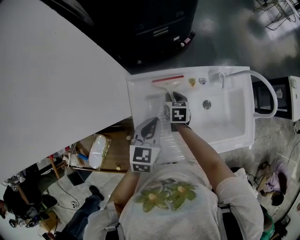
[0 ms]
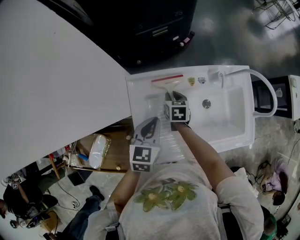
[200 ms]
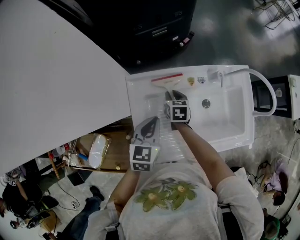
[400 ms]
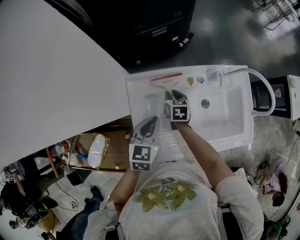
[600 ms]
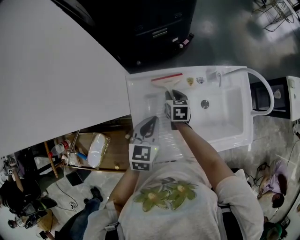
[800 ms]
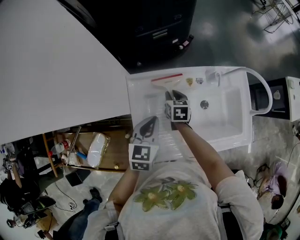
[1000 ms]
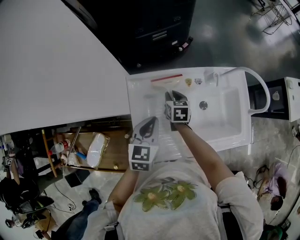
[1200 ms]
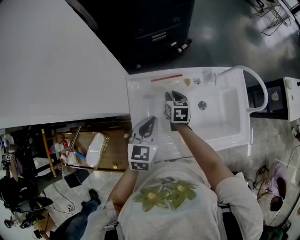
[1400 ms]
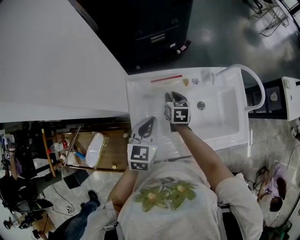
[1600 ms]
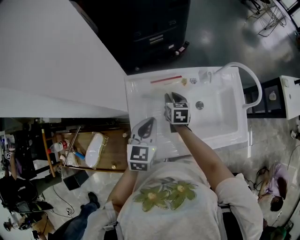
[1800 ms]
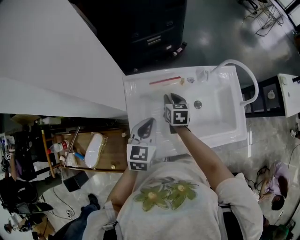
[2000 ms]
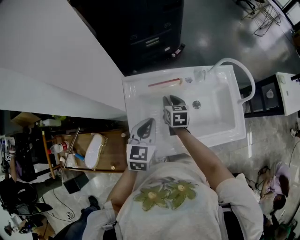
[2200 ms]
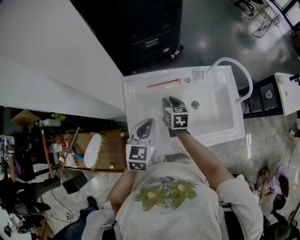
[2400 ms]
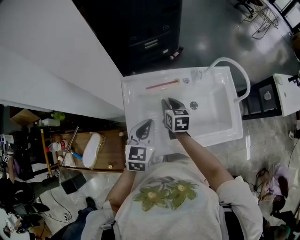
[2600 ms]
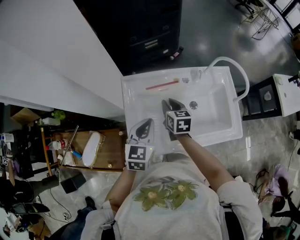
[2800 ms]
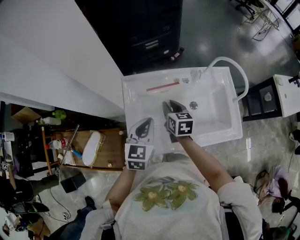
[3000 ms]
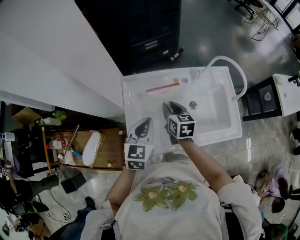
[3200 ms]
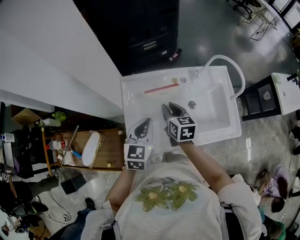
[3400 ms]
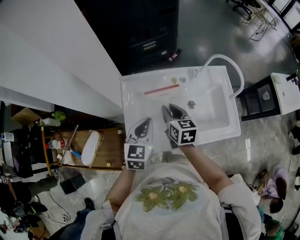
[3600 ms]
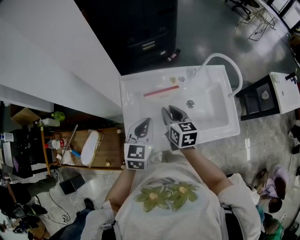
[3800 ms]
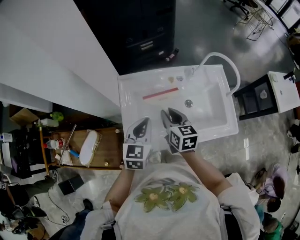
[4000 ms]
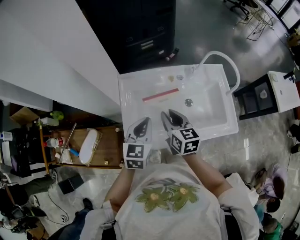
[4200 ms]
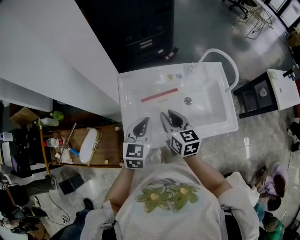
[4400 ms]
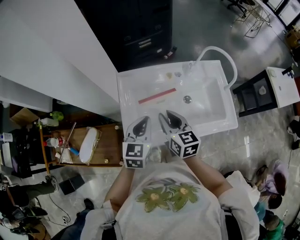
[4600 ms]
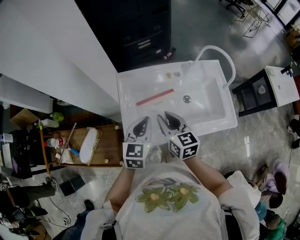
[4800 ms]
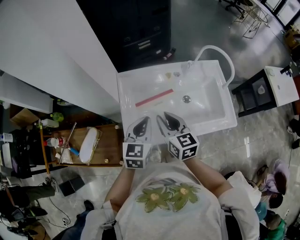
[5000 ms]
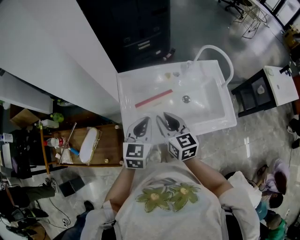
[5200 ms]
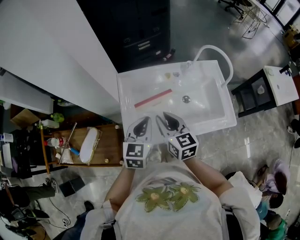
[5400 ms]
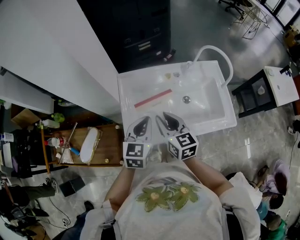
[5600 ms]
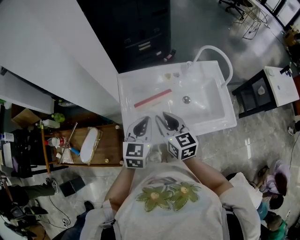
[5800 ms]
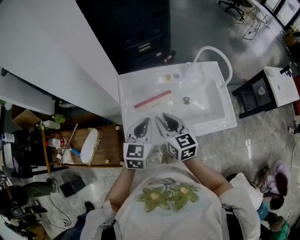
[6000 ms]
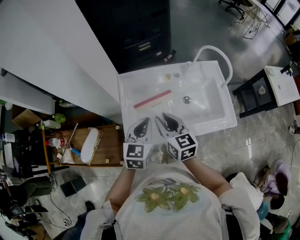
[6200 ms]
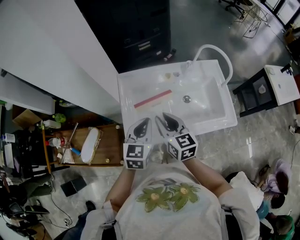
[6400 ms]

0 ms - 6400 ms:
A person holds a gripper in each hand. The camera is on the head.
0 ms - 1600 ms: The right gripper is displaced upward by approximately 5 cm.
1600 ms - 3200 ms: The right gripper goes about 15 cm upward and backward. Meanwhile the left gripper ends up some 5 cm from where it was.
3200 ms - 4800 ms: The right gripper travels backward and upward by roughly 15 cm.
4800 ms - 6400 ms: The grippers make only small movements.

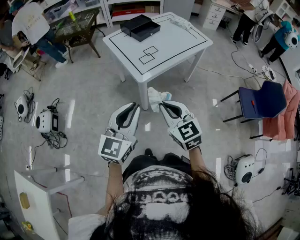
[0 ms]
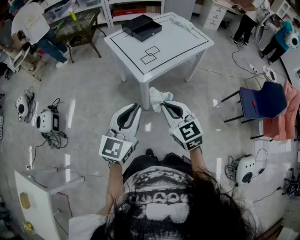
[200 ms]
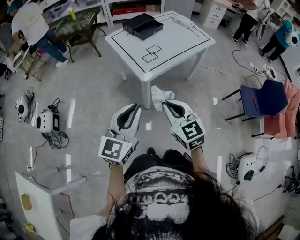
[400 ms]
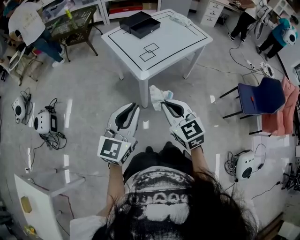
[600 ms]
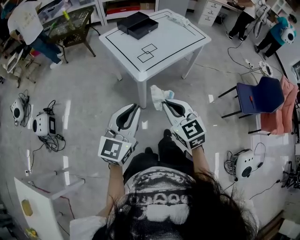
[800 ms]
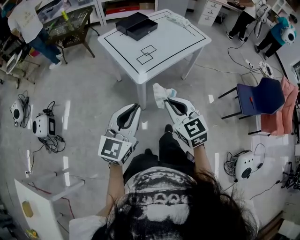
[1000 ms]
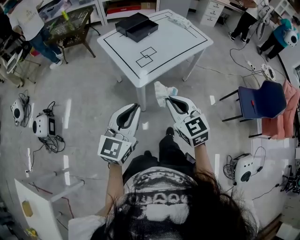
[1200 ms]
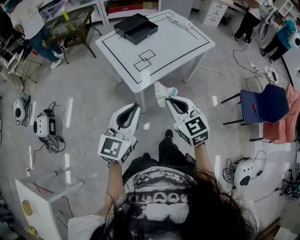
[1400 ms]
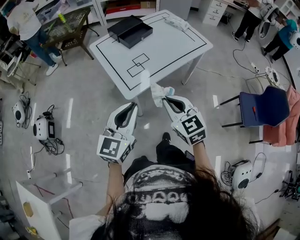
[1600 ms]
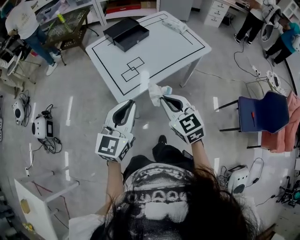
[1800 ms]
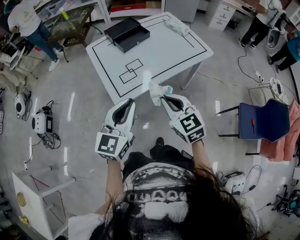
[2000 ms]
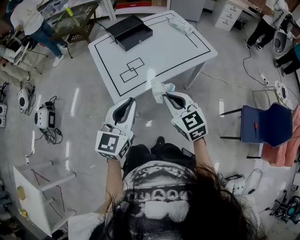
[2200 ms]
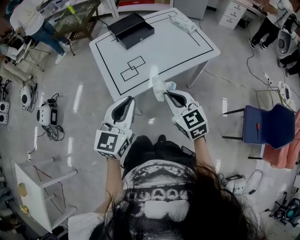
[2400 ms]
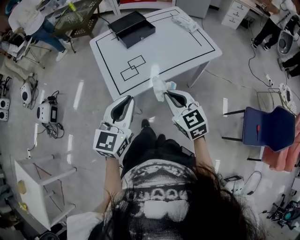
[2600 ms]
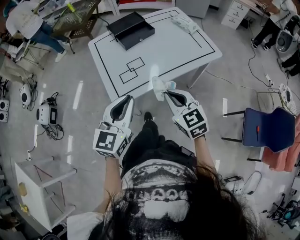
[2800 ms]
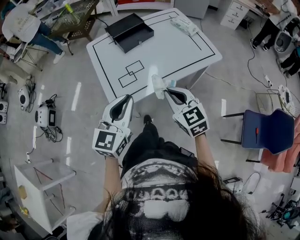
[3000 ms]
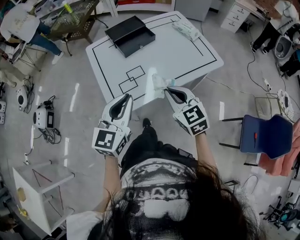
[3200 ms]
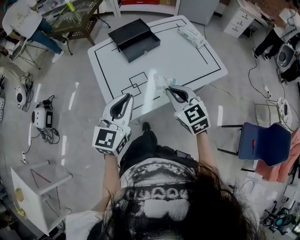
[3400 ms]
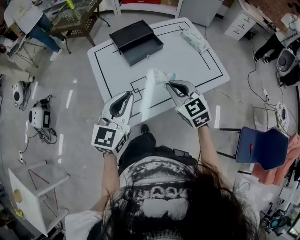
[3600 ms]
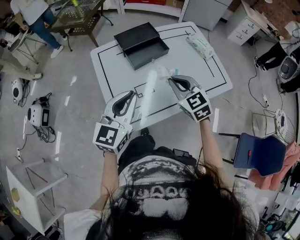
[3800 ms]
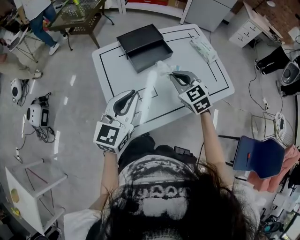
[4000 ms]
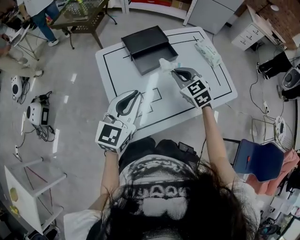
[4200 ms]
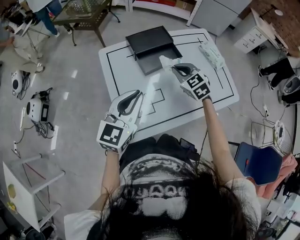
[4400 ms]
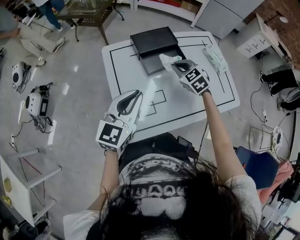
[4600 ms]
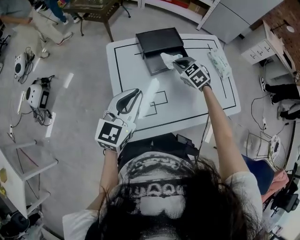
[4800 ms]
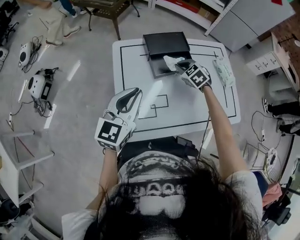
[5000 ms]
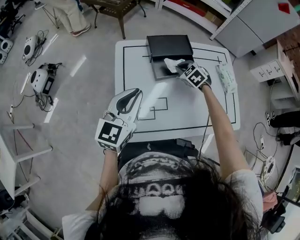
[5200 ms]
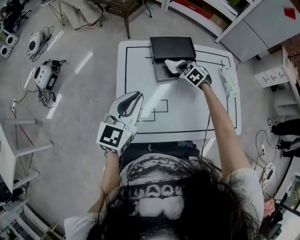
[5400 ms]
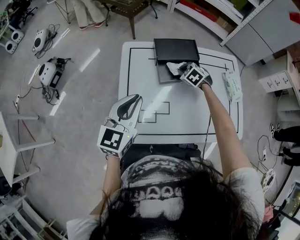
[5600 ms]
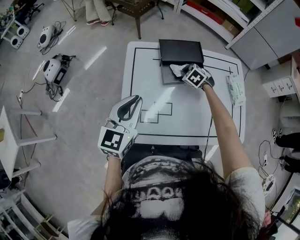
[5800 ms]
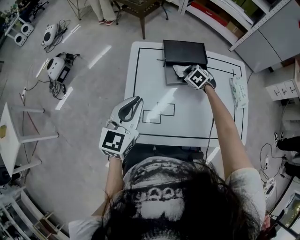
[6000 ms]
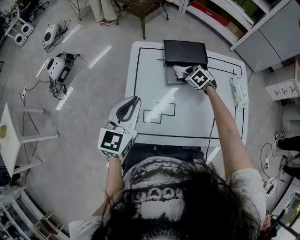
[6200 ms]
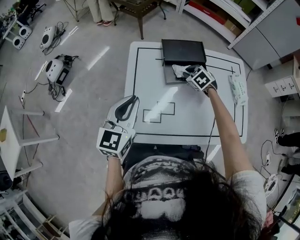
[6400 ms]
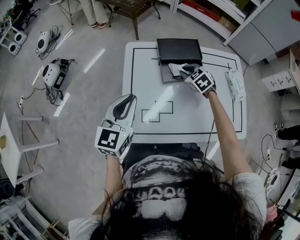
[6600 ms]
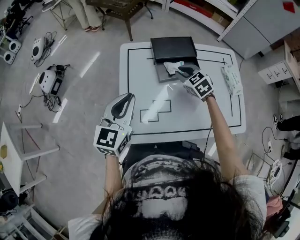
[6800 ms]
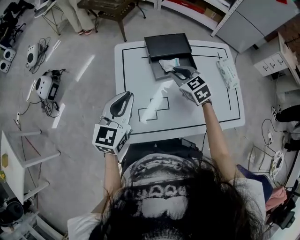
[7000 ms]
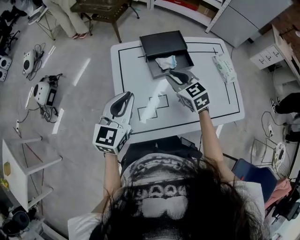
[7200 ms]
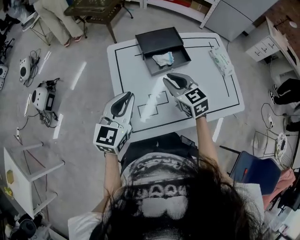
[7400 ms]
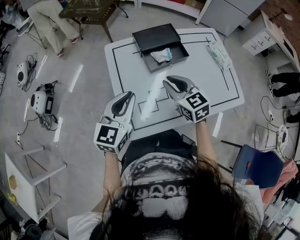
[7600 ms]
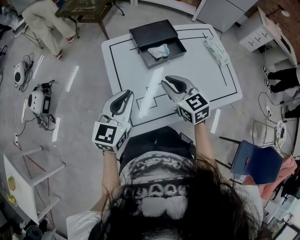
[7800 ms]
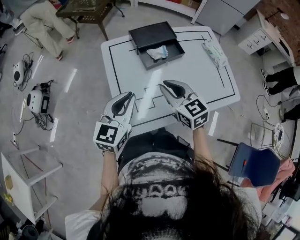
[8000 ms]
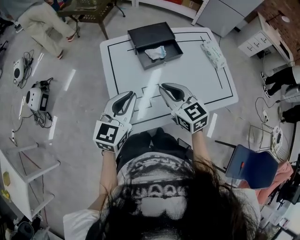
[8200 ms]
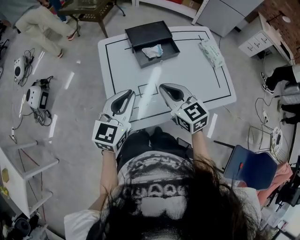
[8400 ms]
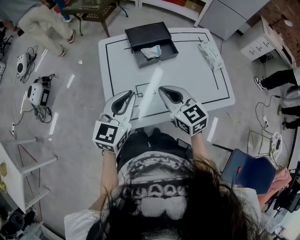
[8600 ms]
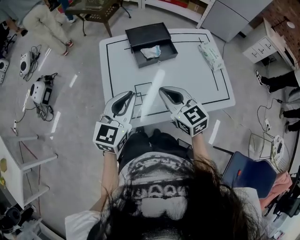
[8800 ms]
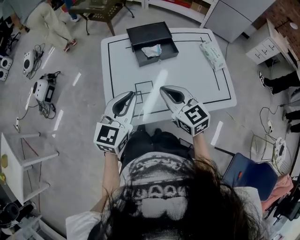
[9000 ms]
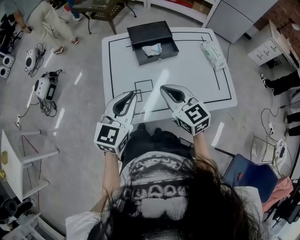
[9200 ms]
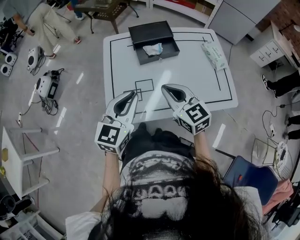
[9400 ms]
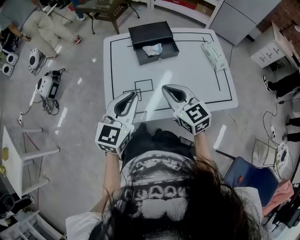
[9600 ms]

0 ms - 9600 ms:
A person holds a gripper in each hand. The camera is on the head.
0 ms - 1600 ms: Both grippers travel together forward and to the right, about 20 cm.
1600 ms - 3200 ms: Both grippers travel together forward and to the right, about 20 cm.
3200 ms - 4800 ms: The left gripper goes some 25 cm forward and to the left, while the right gripper is displaced forward by some 40 cm, and swivels some 30 degrees.
4800 ms - 6400 ms: The right gripper goes about 10 cm downward and forward, while the left gripper changes its angle by roughly 20 degrees.
6400 ms - 8000 ms: The right gripper travels backward and upward by approximately 25 cm, and tilts its fingers about 40 degrees upward; the left gripper swivels about 20 degrees.
8000 ms - 9600 ms: The grippers both shift to the right and backward by some 10 cm.

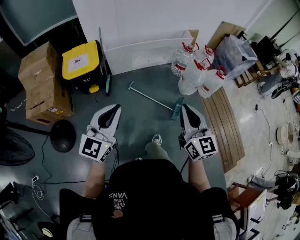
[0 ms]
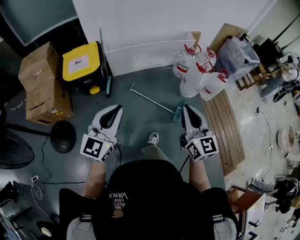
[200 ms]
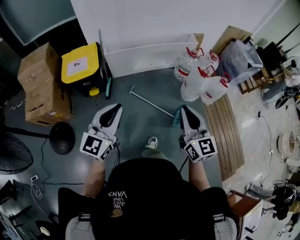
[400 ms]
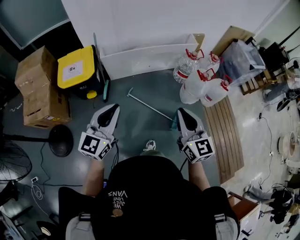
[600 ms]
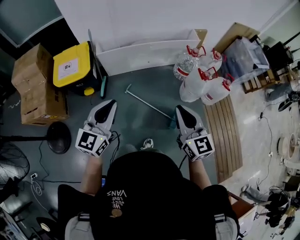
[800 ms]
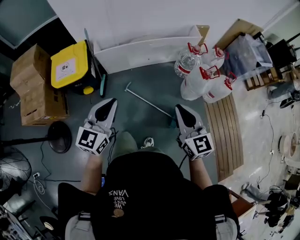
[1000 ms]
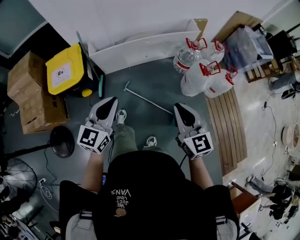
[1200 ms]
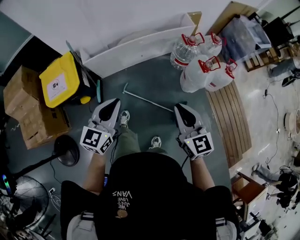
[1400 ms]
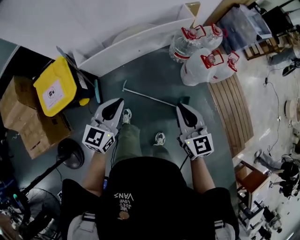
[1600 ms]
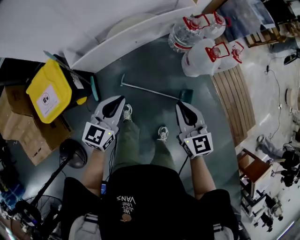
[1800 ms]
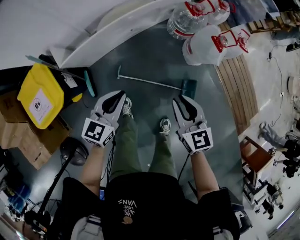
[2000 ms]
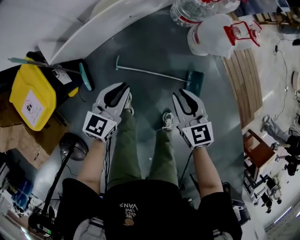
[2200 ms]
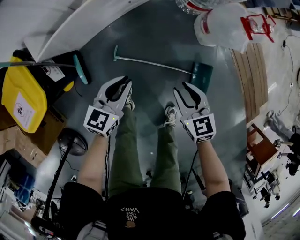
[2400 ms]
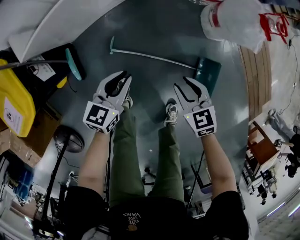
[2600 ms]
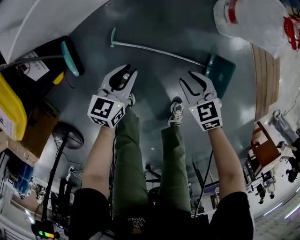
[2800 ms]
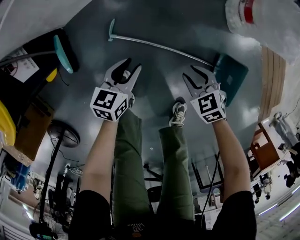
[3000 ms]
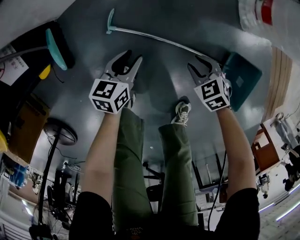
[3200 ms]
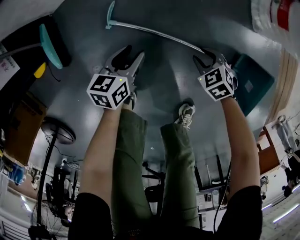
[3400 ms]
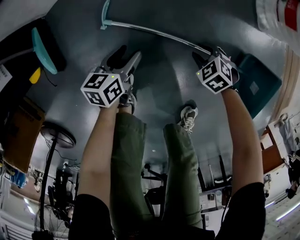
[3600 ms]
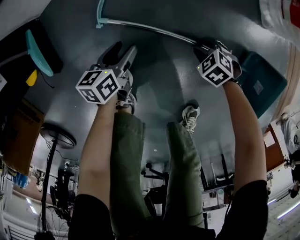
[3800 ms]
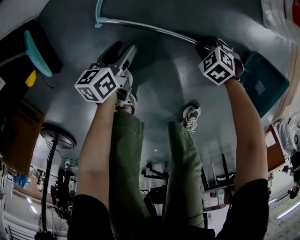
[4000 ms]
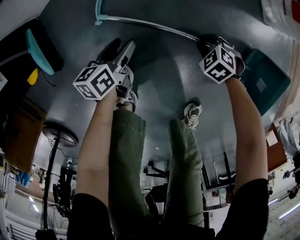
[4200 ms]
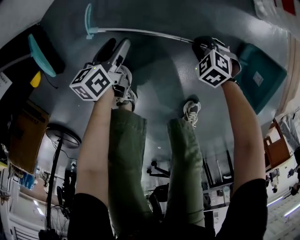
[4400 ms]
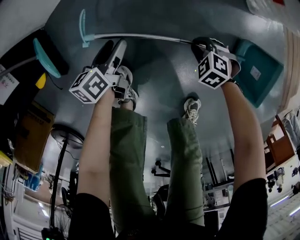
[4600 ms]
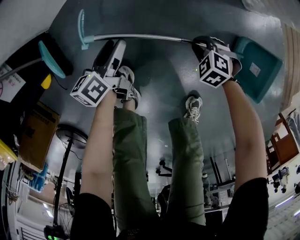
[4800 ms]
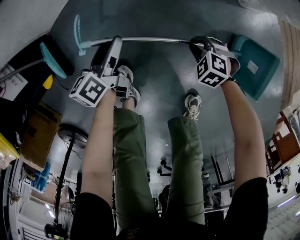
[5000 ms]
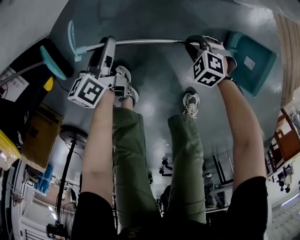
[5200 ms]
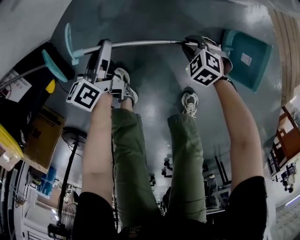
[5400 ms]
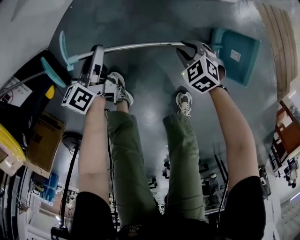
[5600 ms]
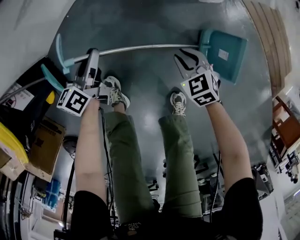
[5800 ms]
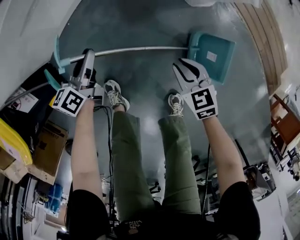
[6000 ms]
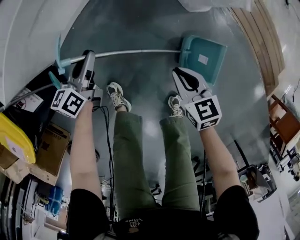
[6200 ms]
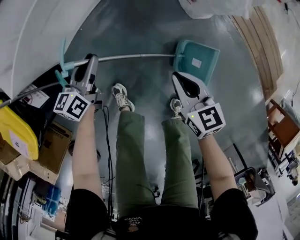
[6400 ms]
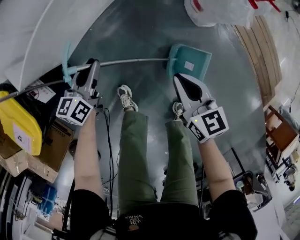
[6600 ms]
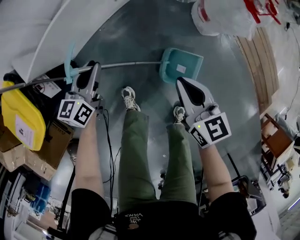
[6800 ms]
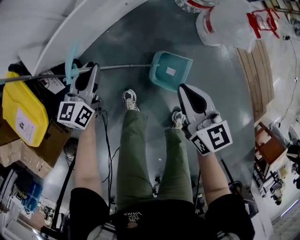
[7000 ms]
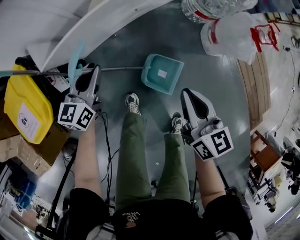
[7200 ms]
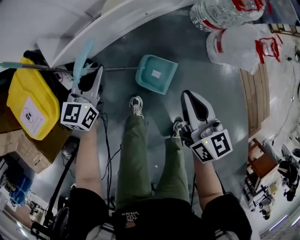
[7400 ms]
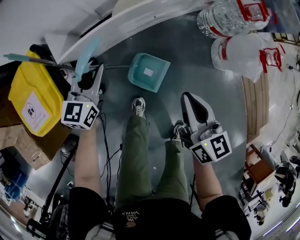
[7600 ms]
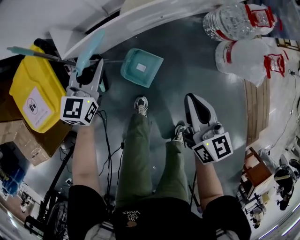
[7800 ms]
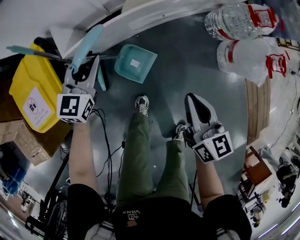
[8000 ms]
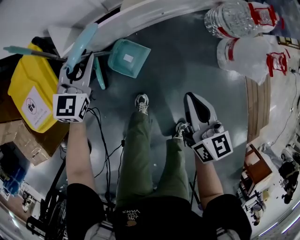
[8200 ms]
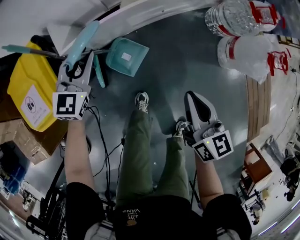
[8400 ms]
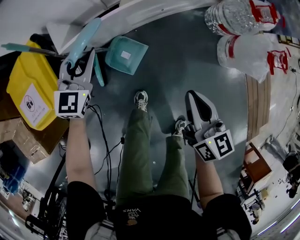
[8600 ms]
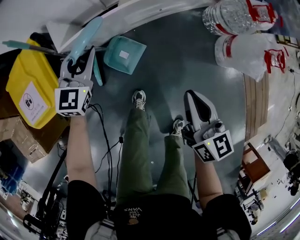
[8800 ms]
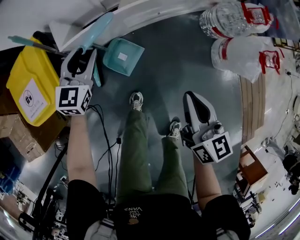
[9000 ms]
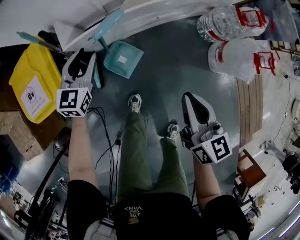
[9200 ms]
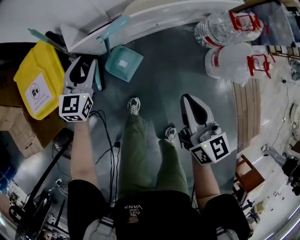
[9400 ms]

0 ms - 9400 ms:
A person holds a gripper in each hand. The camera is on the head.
0 ms - 1600 ms: The two grippers go about 35 cm forward and downward. The left gripper changes its angle by some 20 degrees.
1600 ms - 3200 ms: Both grippers travel together downward, approximately 70 cm. The left gripper rotates roughly 40 degrees, and opens. The right gripper angles its fingers downward, by some 50 degrees, and opens up.
3200 ms - 4800 ms: The right gripper shifts some 10 cm downward. The left gripper goes downward and returns, some 15 cm each way, swivels some 30 degrees, and opens.
4800 ms - 6200 ms: Both grippers move upward, roughly 25 cm. The left gripper changes its angle by some 20 degrees, and closes its fingers, while the right gripper tips its fingers upward by about 30 degrees.
6200 ms - 7800 ms: The right gripper heads upward, to the left and forward, covering approximately 35 cm. Meanwhile the left gripper moves to the left and upward, about 30 cm, and swivels about 40 degrees.
7800 ms - 9400 ms: The left gripper travels upward by about 5 cm. Meanwhile the right gripper is displaced upward by roughly 10 cm.
